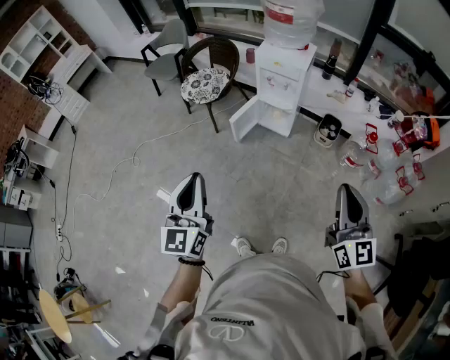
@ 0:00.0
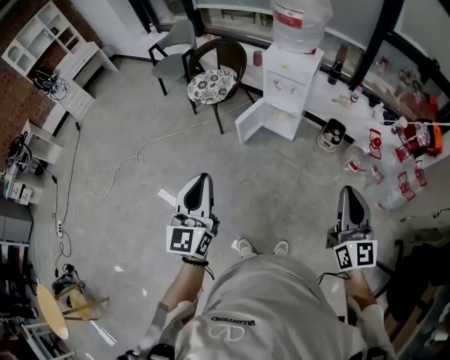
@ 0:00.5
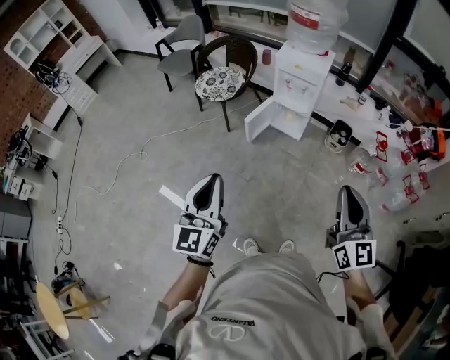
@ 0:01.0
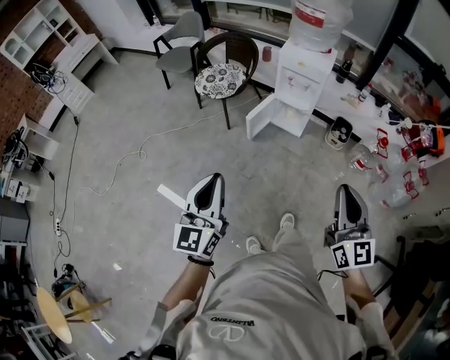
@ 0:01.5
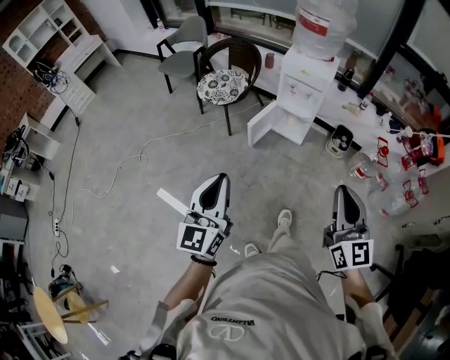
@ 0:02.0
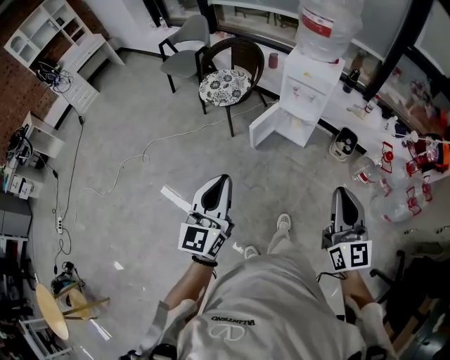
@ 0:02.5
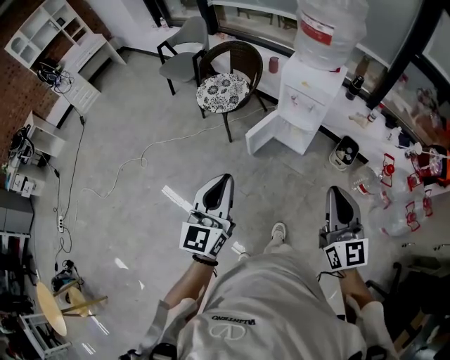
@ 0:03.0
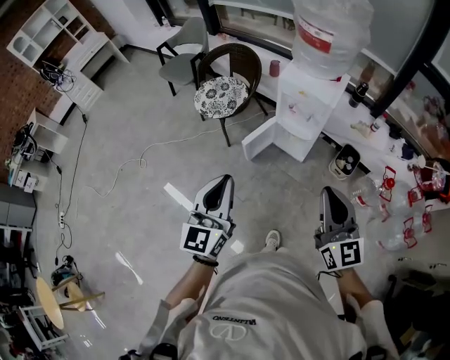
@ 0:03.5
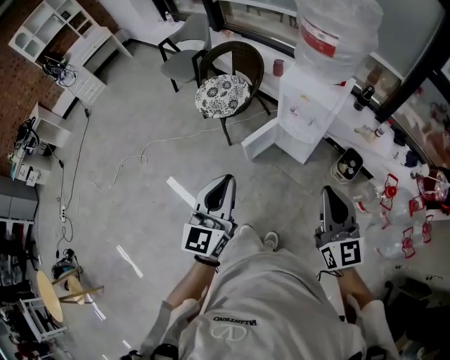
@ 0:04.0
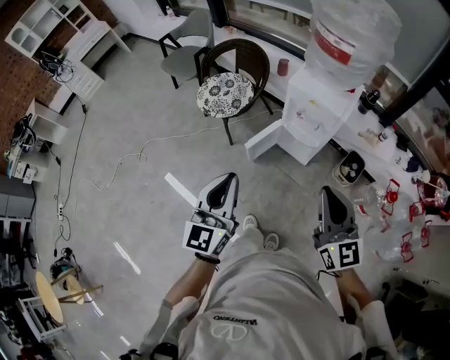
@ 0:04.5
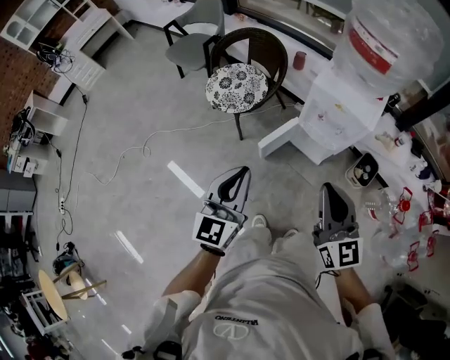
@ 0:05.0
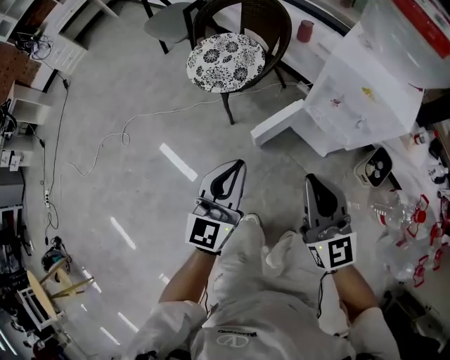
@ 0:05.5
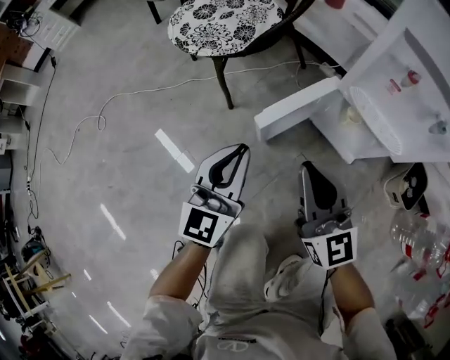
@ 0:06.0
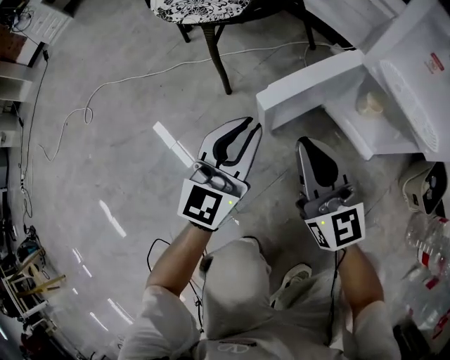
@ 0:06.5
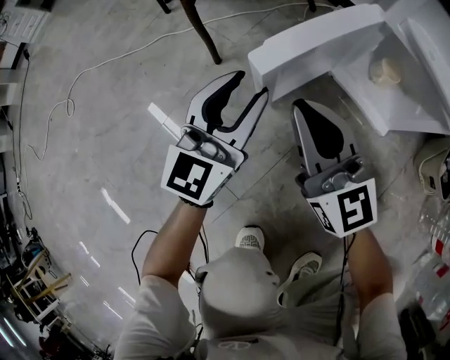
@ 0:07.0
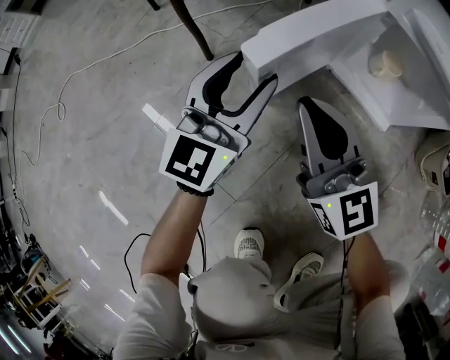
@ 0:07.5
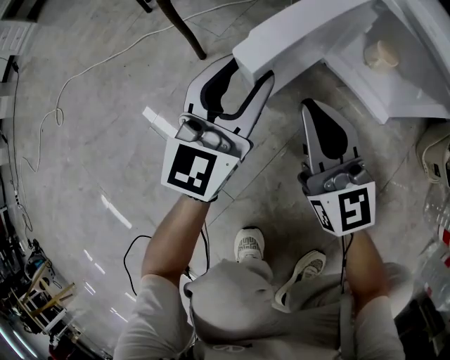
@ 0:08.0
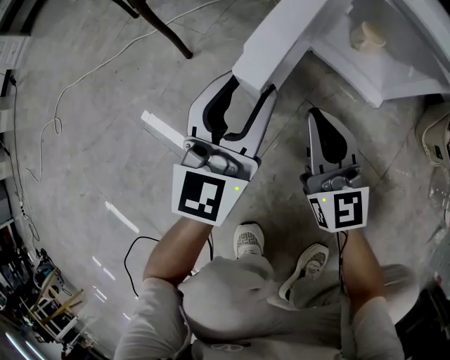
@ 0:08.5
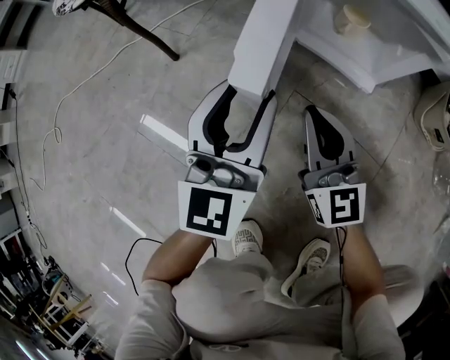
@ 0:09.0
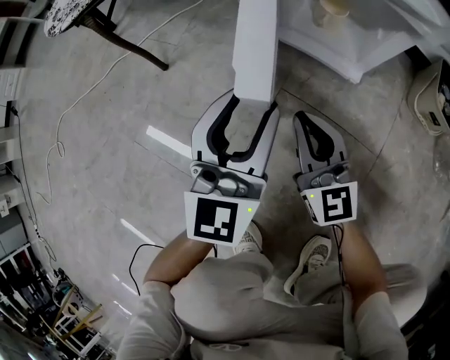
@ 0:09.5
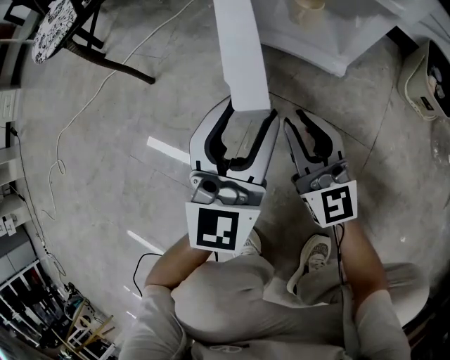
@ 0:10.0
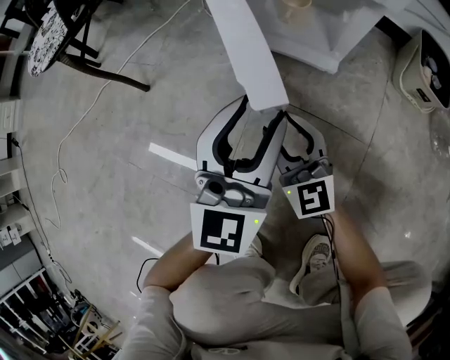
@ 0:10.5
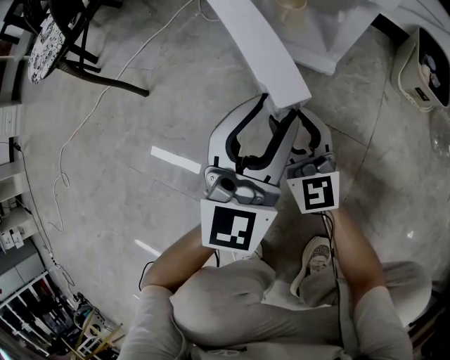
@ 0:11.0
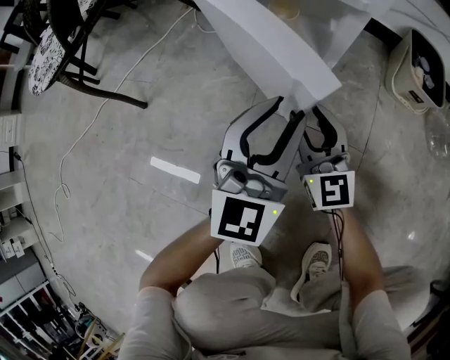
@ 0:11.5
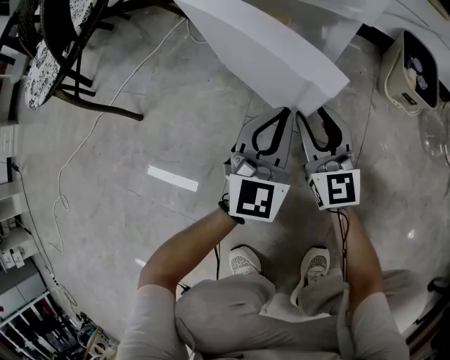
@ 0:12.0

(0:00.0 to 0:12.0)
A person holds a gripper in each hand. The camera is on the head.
0:00.0 - 0:02.0: The left gripper moves to the left, approximately 5 cm; the right gripper heads to the left, covering approximately 15 cm.
0:02.0 - 0:04.0: The two grippers go roughly 30 cm forward and to the right.
0:04.0 - 0:06.0: Both grippers travel together downward and forward, some 60 cm.
0:06.0 - 0:08.0: The left gripper heads downward and forward, covering approximately 20 cm, and opens. The right gripper heads downward, covering approximately 25 cm.
0:08.0 - 0:10.0: The right gripper travels to the right, downward and backward by approximately 15 cm, while the left gripper goes roughly 20 cm to the right and backward.
0:10.0 - 0:12.0: The right gripper goes some 10 cm to the right and forward. The left gripper is displaced to the right, downward and forward by roughly 15 cm, and closes up.

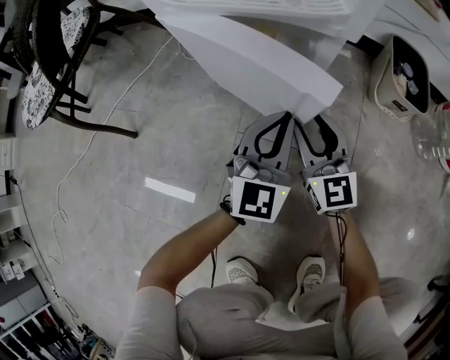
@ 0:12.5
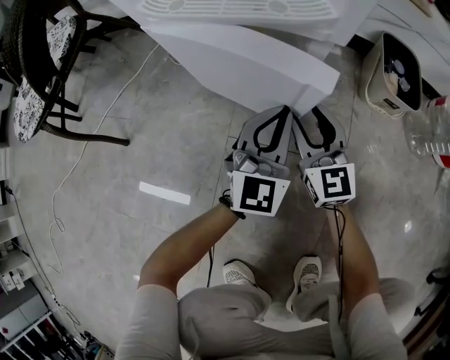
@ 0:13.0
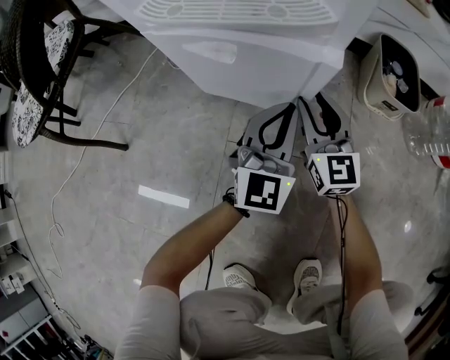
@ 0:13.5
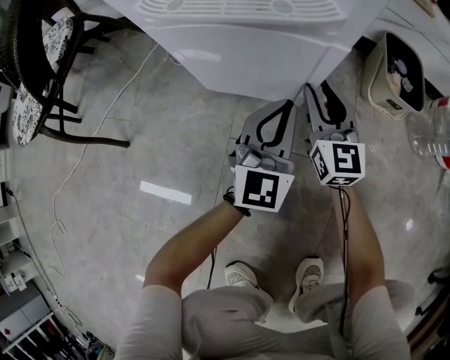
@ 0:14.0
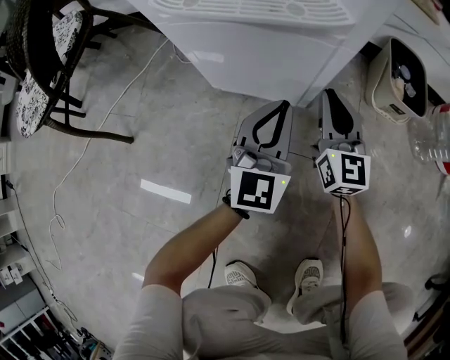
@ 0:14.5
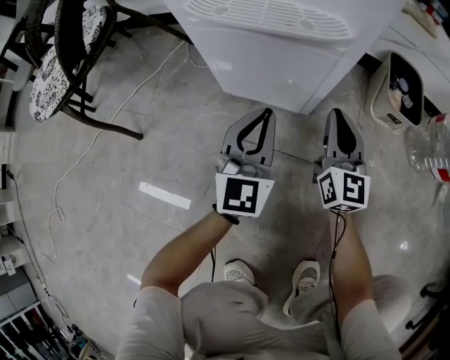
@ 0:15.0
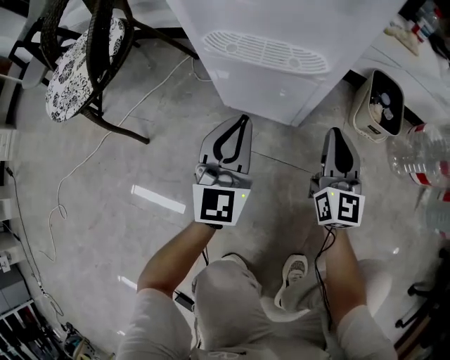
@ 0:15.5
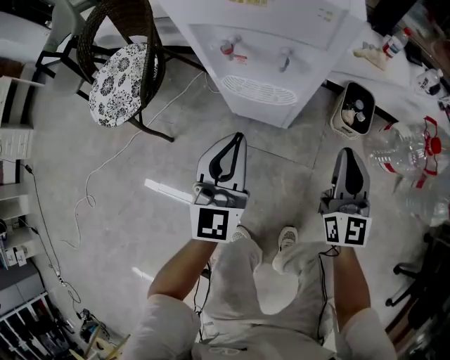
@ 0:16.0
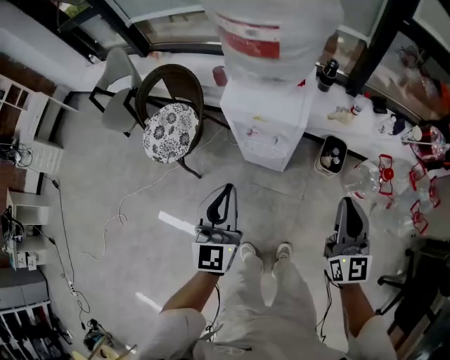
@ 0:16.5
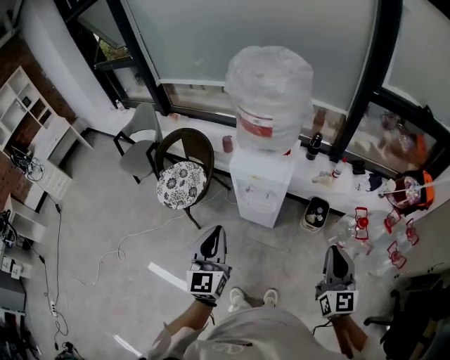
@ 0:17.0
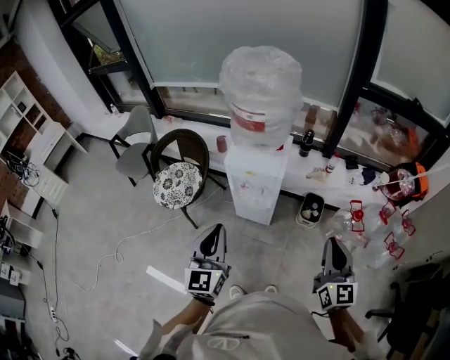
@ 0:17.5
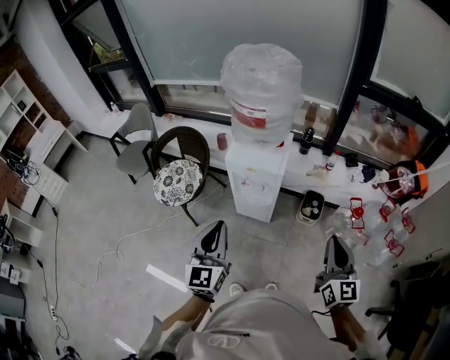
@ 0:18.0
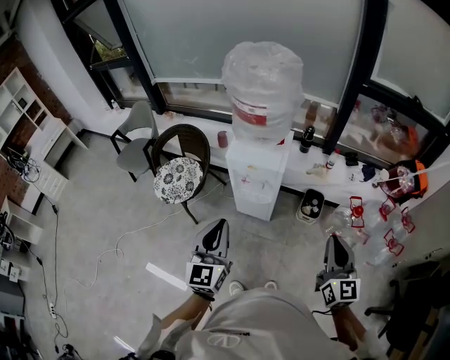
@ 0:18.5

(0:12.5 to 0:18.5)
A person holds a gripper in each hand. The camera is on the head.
0:12.5 - 0:14.5: The right gripper shifts approximately 10 cm forward and to the right, and closes its fingers.
0:14.5 - 0:16.5: The two grippers go approximately 70 cm upward.
0:16.5 - 0:18.5: The right gripper goes some 20 cm backward and upward, while the left gripper goes approximately 15 cm upward and backward.

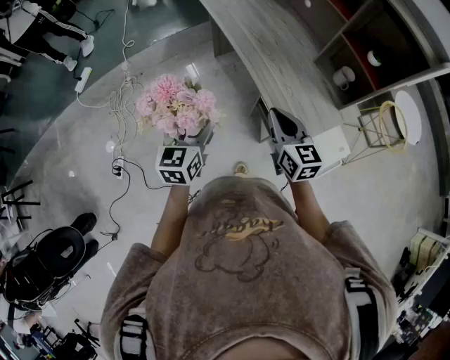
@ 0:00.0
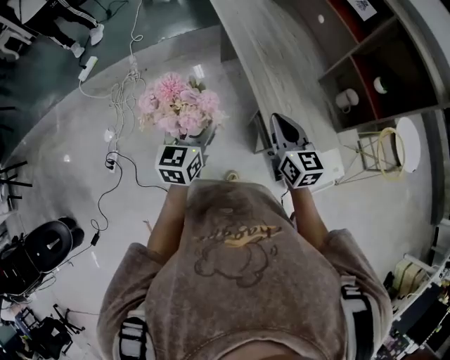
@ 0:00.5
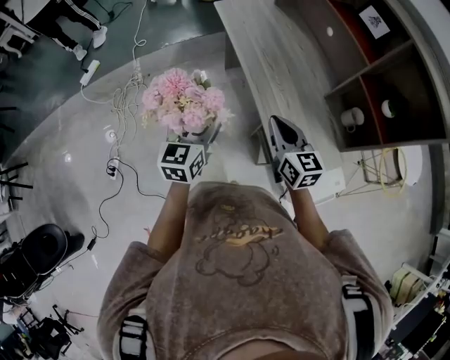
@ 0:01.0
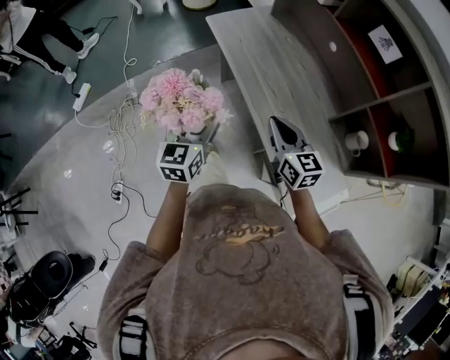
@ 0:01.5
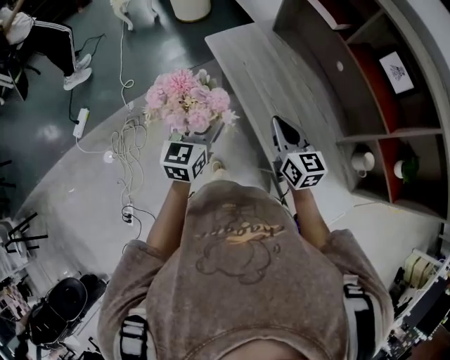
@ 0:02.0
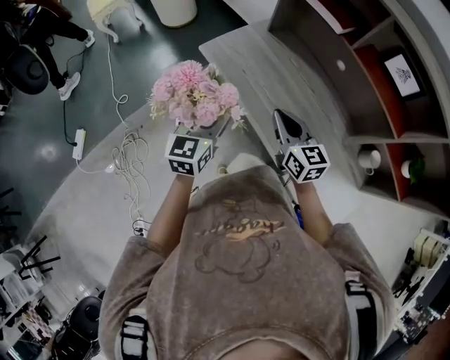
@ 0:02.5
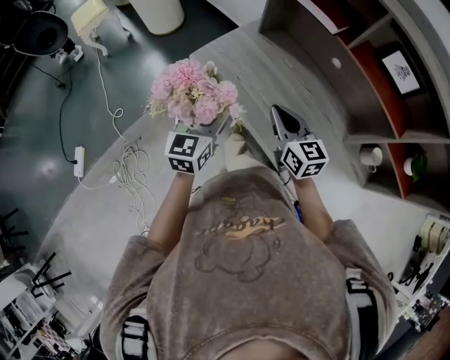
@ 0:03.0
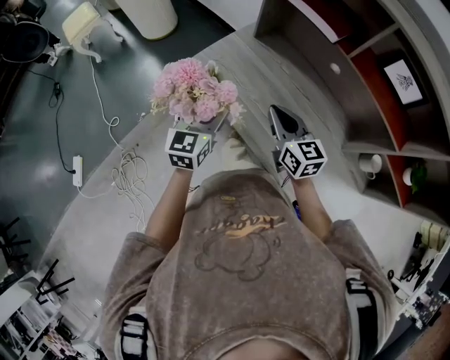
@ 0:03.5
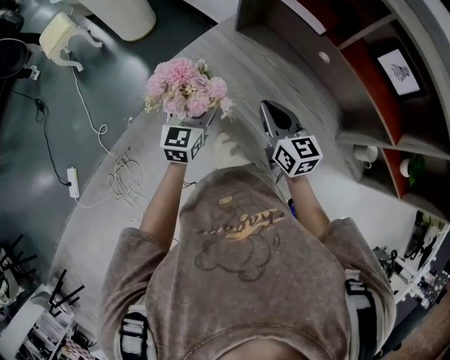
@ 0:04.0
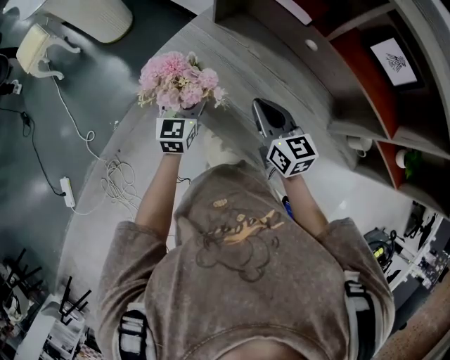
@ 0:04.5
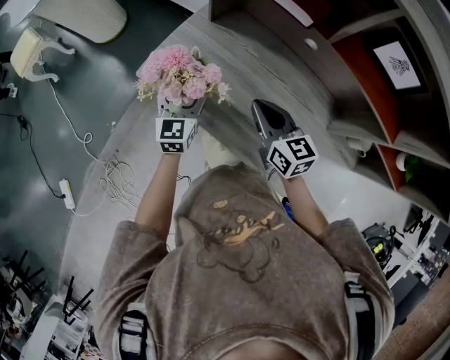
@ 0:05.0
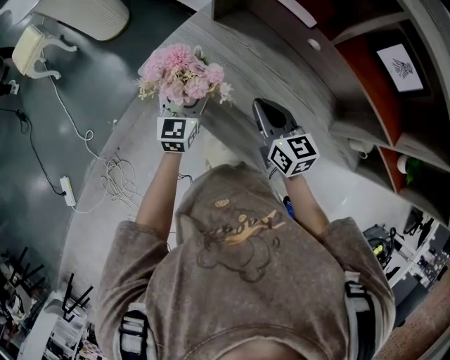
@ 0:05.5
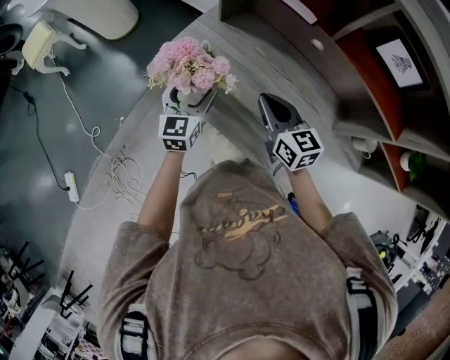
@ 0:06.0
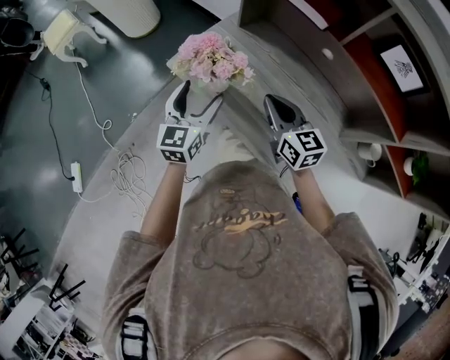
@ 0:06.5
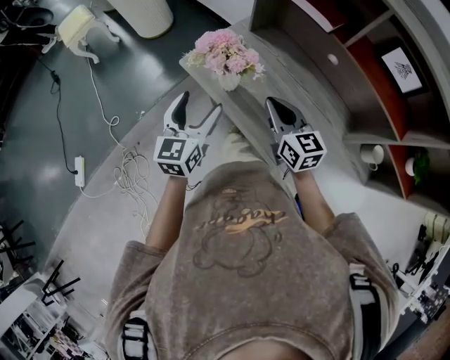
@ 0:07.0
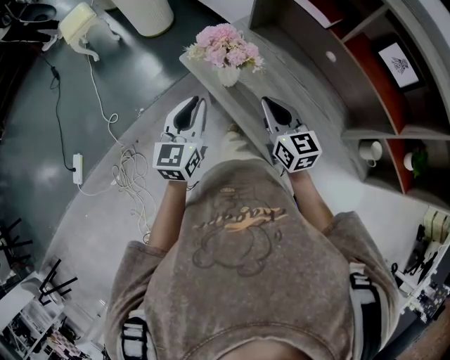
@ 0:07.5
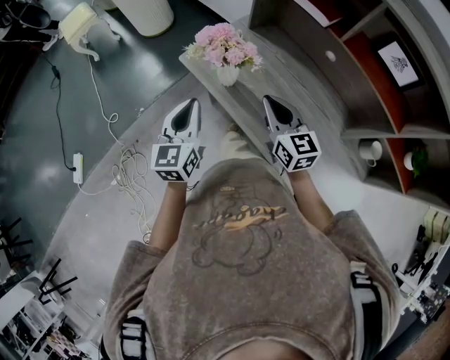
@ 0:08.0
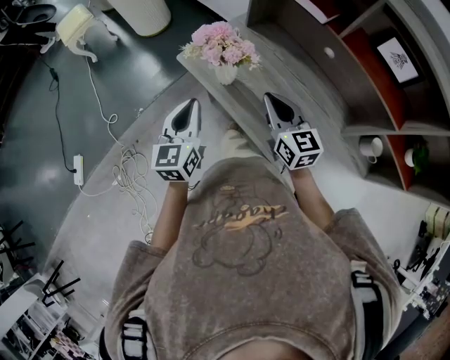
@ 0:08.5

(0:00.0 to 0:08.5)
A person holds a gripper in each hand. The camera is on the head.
0:00.0 - 0:02.0: Both grippers are carried forward, roughly 40 cm.
0:02.0 - 0:04.0: Both grippers move forward, roughly 20 cm.
0:04.0 - 0:06.5: The left gripper moves about 5 cm forward and comes back.
0:06.5 - 0:08.5: The left gripper shifts some 10 cm backward and to the left, and closes. The right gripper changes place by roughly 5 cm.
